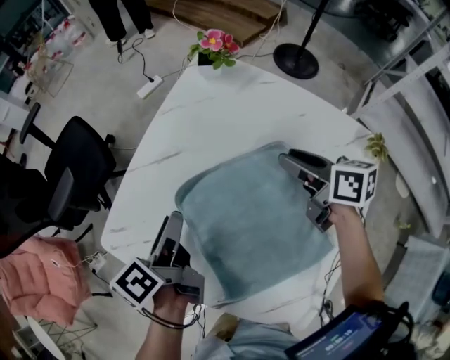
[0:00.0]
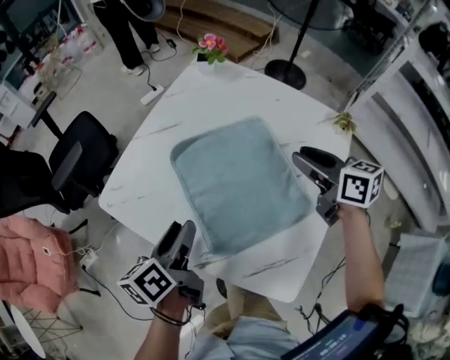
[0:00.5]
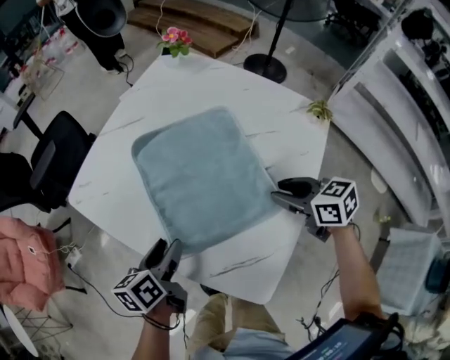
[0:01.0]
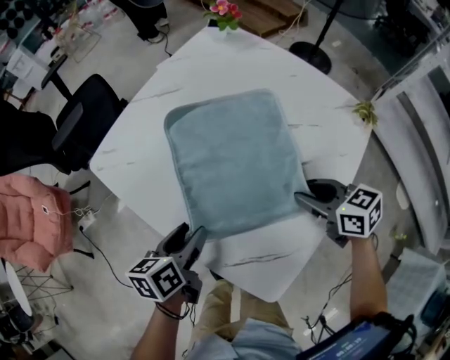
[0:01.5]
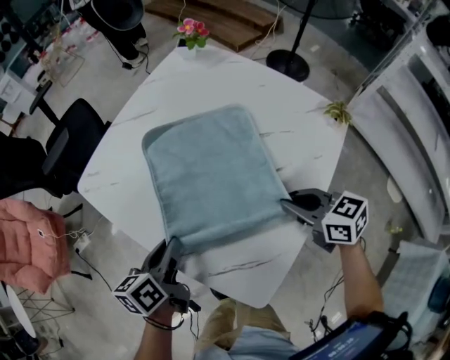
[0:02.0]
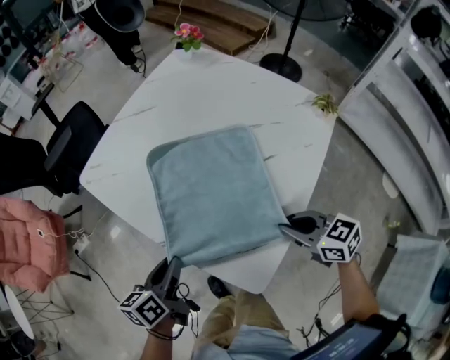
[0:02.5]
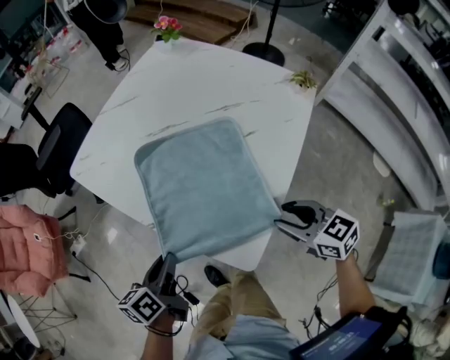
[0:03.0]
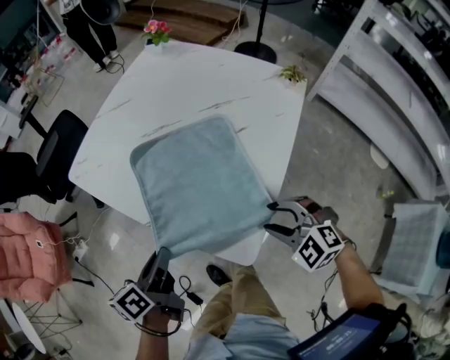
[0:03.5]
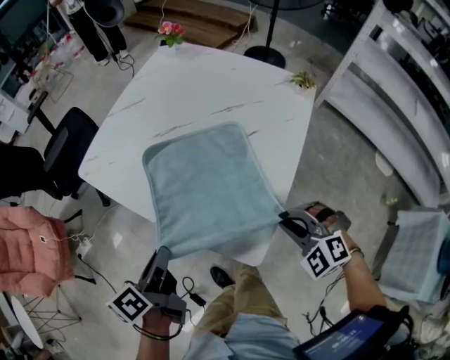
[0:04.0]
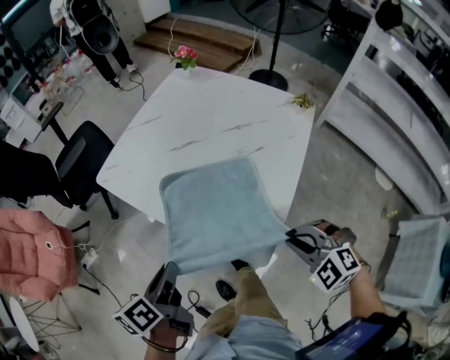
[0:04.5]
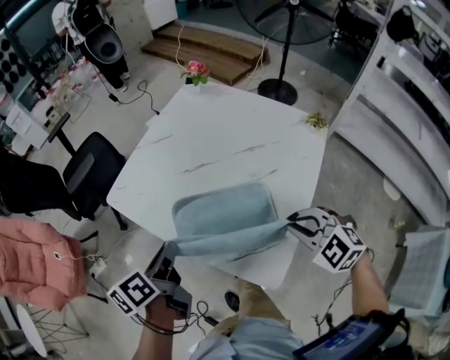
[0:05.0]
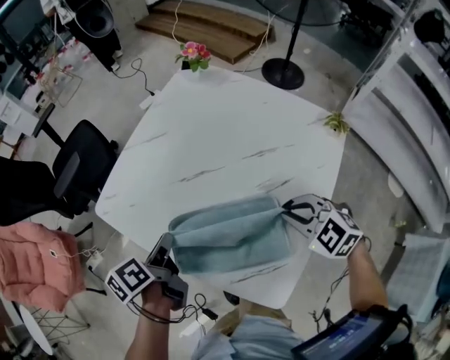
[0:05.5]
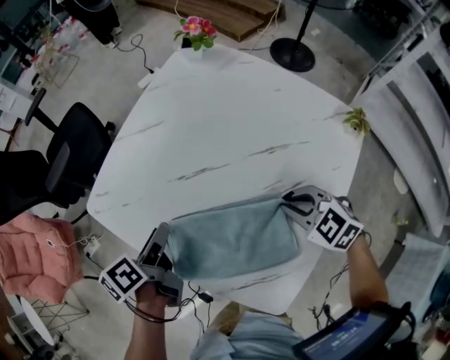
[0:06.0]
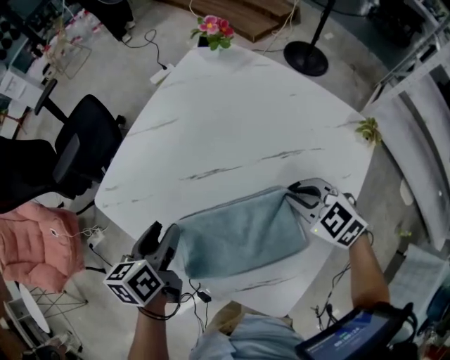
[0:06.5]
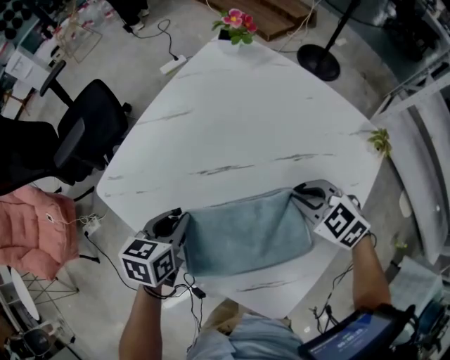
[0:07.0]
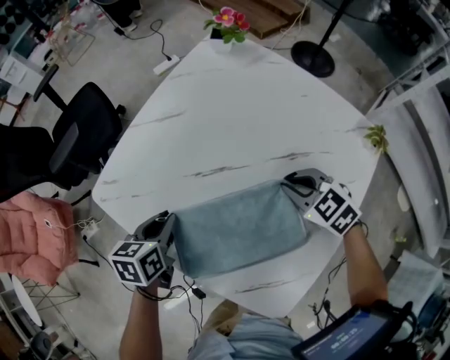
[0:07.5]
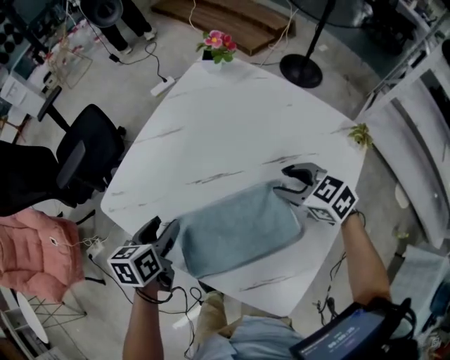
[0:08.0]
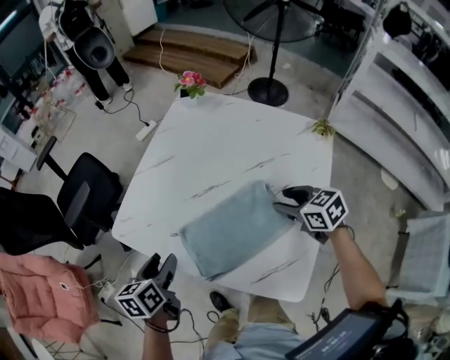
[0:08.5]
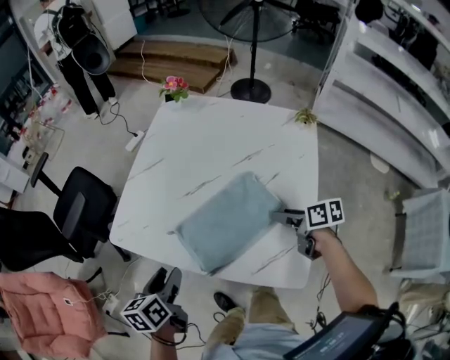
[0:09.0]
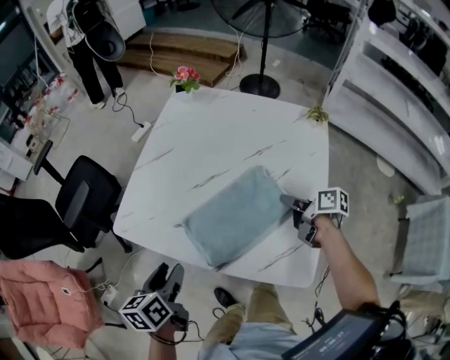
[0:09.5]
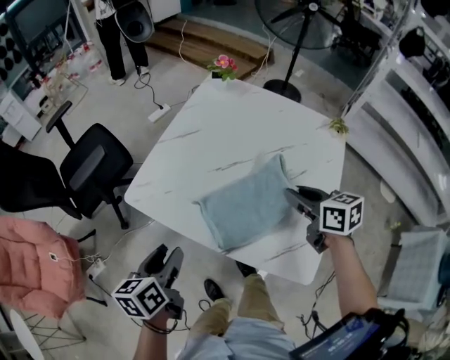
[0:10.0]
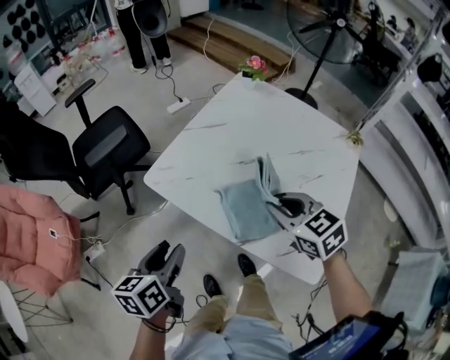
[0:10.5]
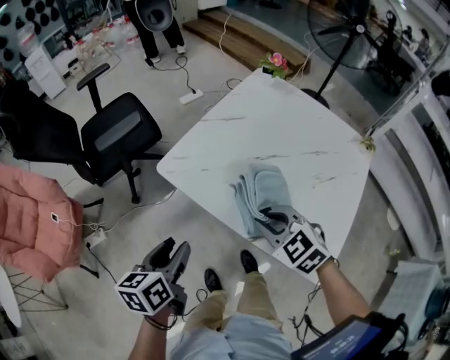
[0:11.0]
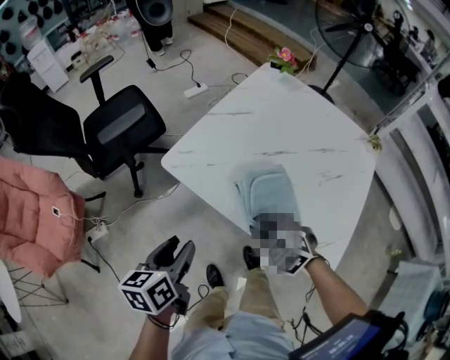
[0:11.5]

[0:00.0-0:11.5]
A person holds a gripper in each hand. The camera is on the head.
0:00.0 to 0:02.0: The two grippers go some 25 cm backward. The right gripper turns by some 30 degrees, and closes its fingers. Meanwhile the left gripper rotates some 20 degrees, and closes its fingers.
0:02.0 to 0:04.0: Both grippers move backward, about 15 cm. The right gripper twists some 60 degrees counterclockwise, seen from behind, and opens and closes again.
0:04.0 to 0:06.0: The two grippers go some 25 cm forward. The right gripper rotates some 30 degrees. The left gripper opens.
0:06.0 to 0:07.5: The left gripper swivels about 40 degrees, and closes. Meanwhile the right gripper heads forward, covering roughly 10 cm.
0:07.5 to 0:09.5: The right gripper is displaced backward by some 15 cm, rolls clockwise, seen from behind, by about 90 degrees, and opens, then closes again. The left gripper is displaced backward, upward and to the left by some 15 cm, and opens its fingers.
0:09.5 to 0:11.5: The right gripper shifts approximately 35 cm to the left, and twists some 100 degrees counterclockwise, seen from behind. Meanwhile the left gripper heads to the left and backward, covering about 10 cm.

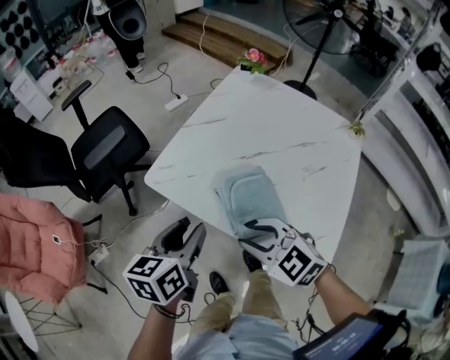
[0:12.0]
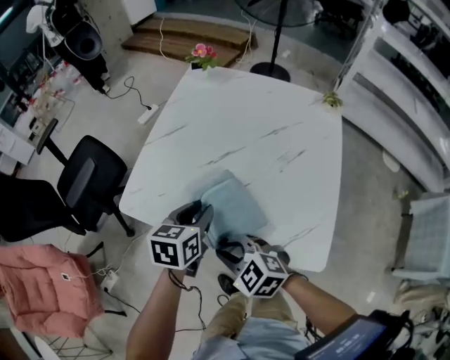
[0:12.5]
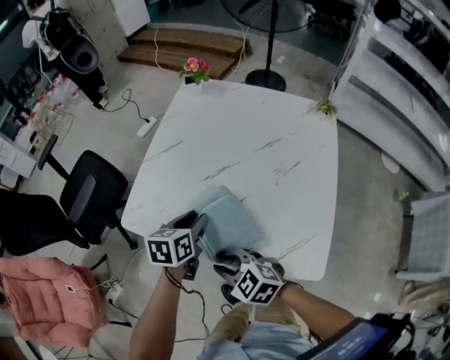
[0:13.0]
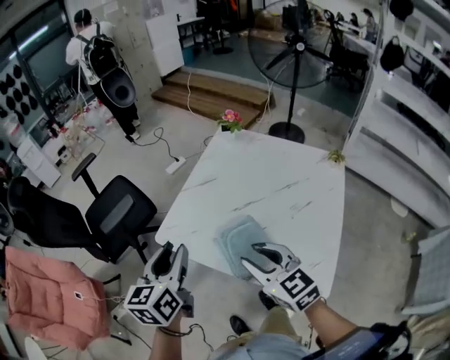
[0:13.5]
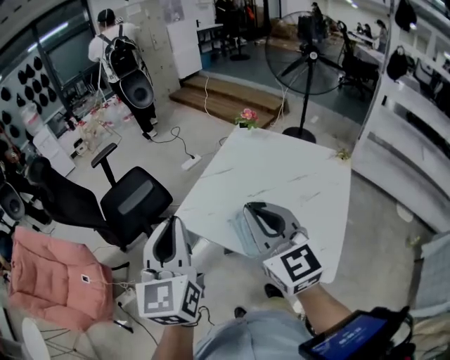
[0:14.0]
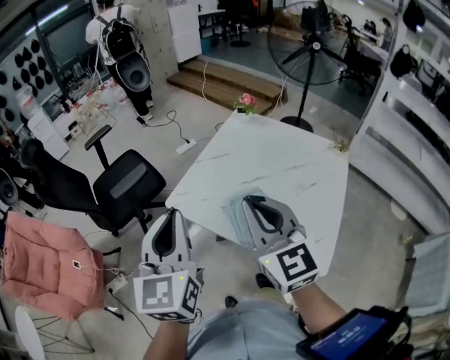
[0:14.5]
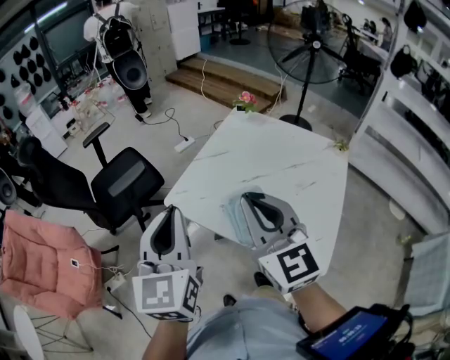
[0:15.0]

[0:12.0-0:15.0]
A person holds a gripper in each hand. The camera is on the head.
0:12.0 to 0:13.5: The grippers both shift upward by about 10 cm. The right gripper rotates some 30 degrees.
0:13.5 to 0:15.0: The right gripper goes about 15 cm upward, changes its angle by approximately 30 degrees, and closes its fingers. The left gripper goes approximately 15 cm upward and backward, swivels roughly 30 degrees, and closes its fingers.

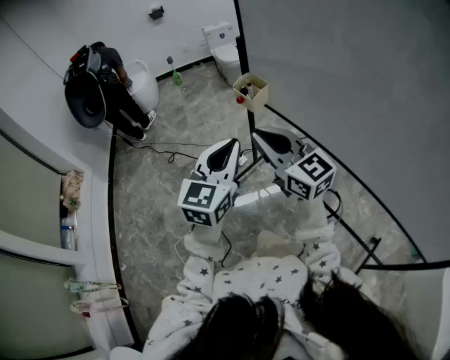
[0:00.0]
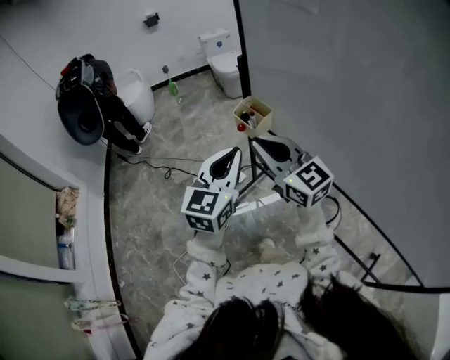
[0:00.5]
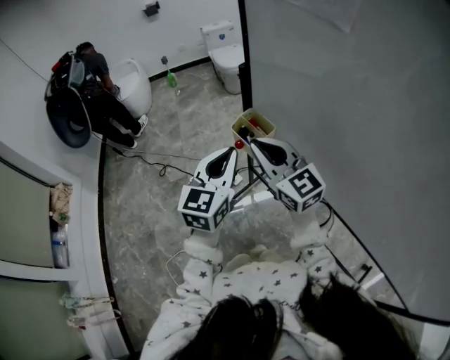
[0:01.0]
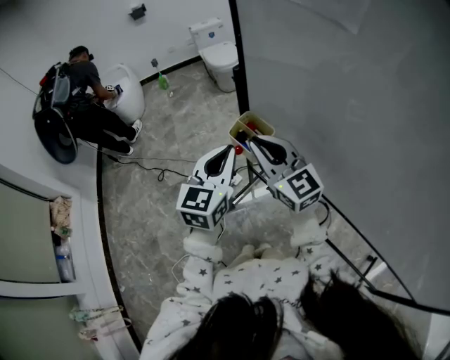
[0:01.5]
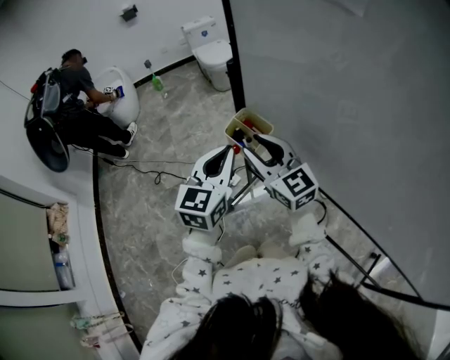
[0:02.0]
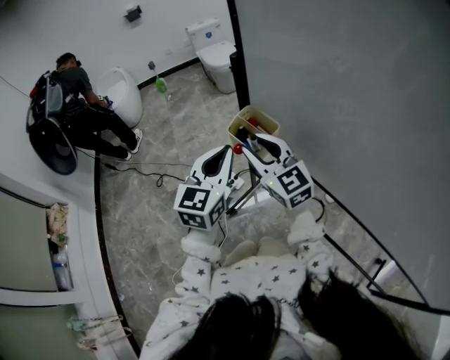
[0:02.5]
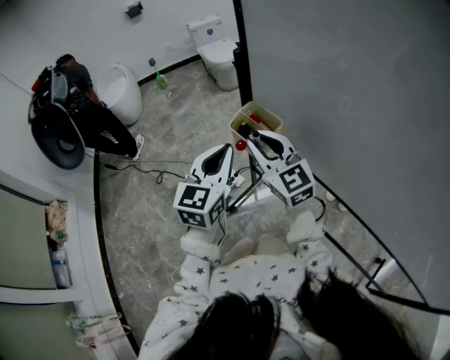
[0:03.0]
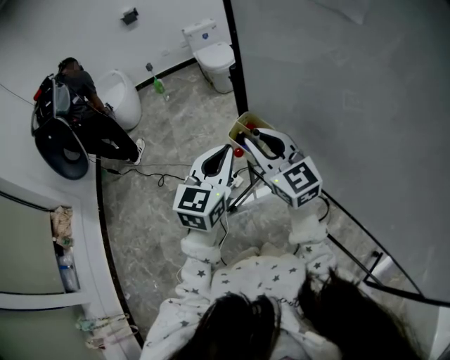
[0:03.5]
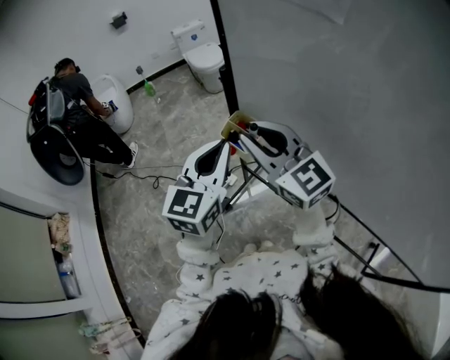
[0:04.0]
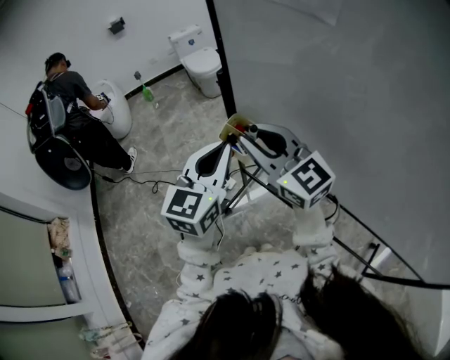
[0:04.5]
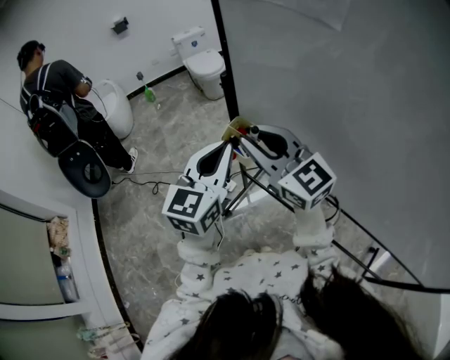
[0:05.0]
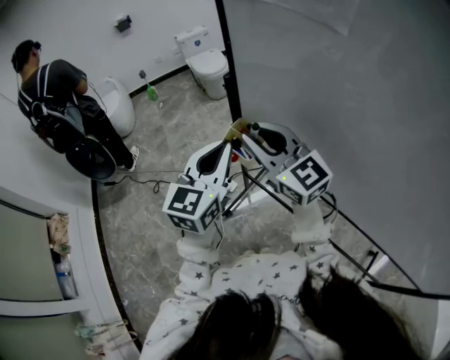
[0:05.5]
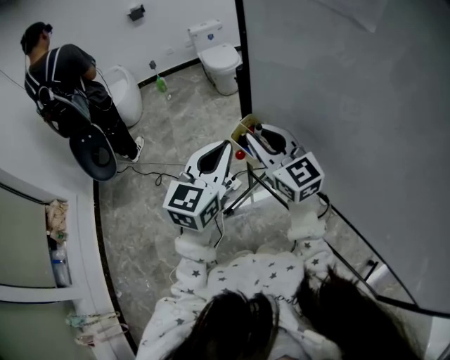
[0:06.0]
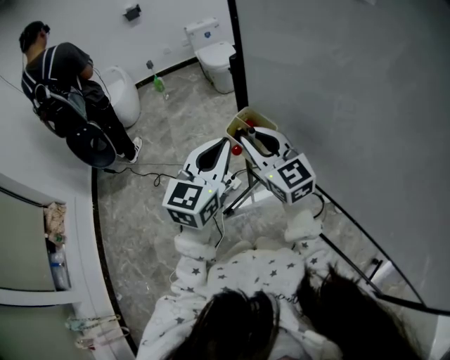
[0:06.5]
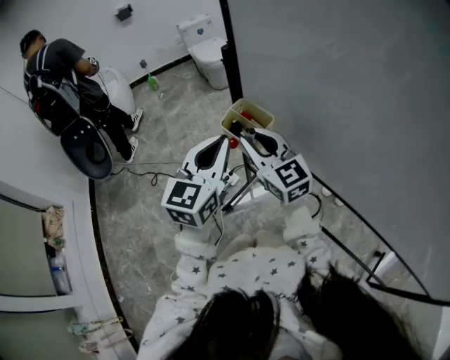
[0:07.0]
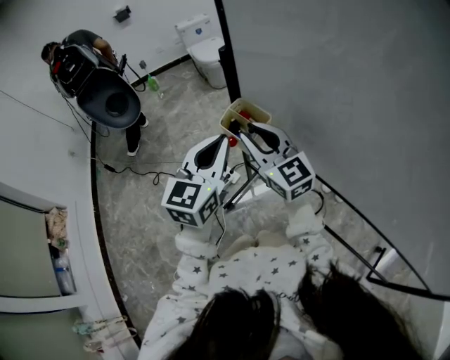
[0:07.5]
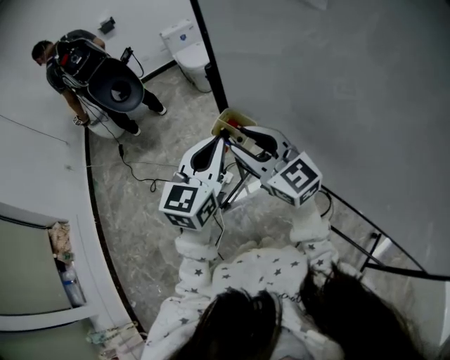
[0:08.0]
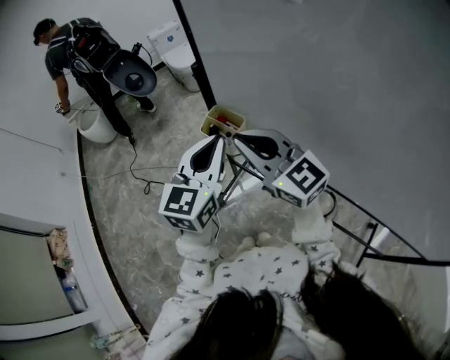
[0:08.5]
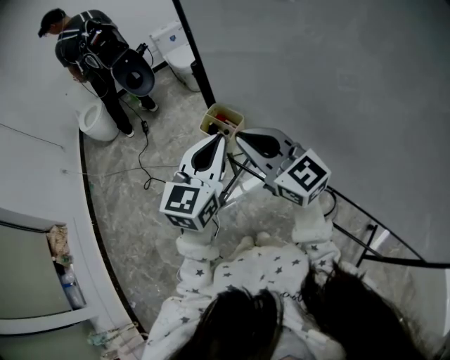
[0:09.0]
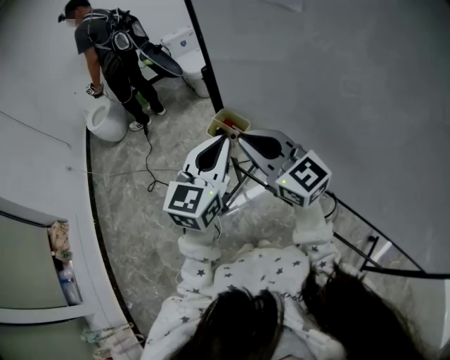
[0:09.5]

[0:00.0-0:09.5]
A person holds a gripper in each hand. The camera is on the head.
0:00.0 to 0:02.0: The grippers both shift forward by about 25 cm. The right gripper opens up.
0:02.0 to 0:04.0: The grippers both shift upward by approximately 10 cm.
0:04.0 to 0:05.5: There are only small adjustments of the grippers.
0:05.5 to 0:07.5: The left gripper moves downward, approximately 10 cm. Meanwhile the right gripper moves downward, about 10 cm.
0:07.5 to 0:09.5: The right gripper moves upward and backward, roughly 15 cm; the left gripper goes approximately 10 cm upward.

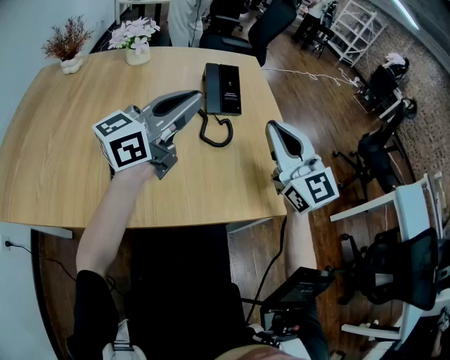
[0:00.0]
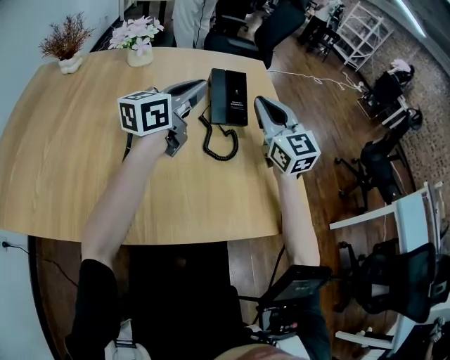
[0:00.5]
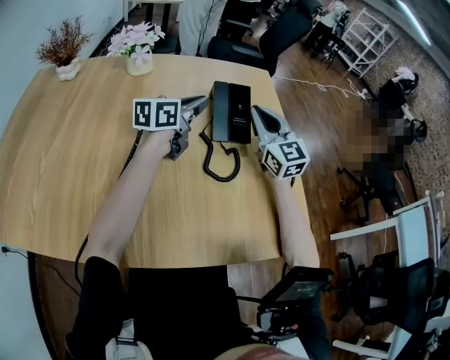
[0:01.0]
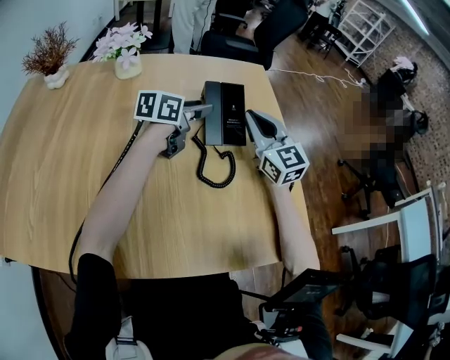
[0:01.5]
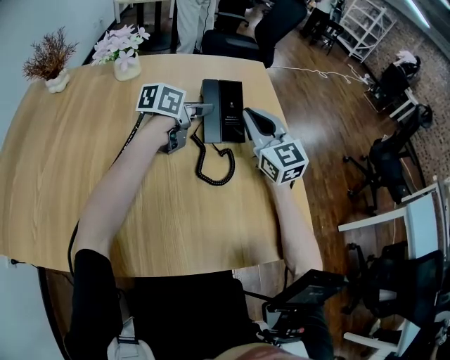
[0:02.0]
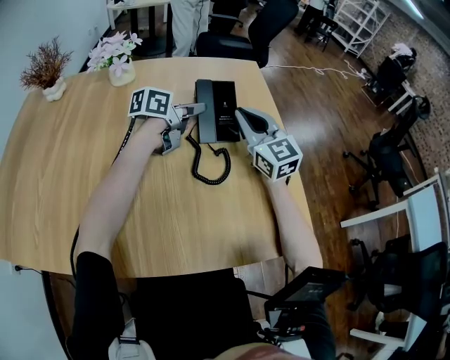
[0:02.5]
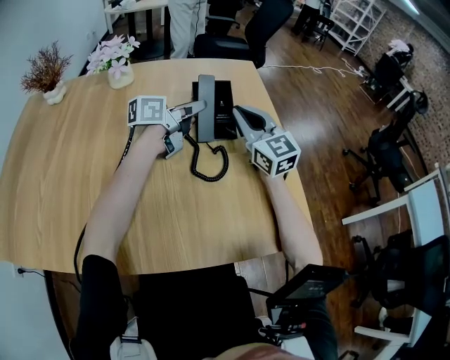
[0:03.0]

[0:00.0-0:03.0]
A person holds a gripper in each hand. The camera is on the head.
0:00.0 to 0:01.5: The left gripper shifts approximately 30 cm forward and downward, tips its fingers downward by about 30 degrees, and opens, while the right gripper shifts some 20 cm forward.
0:01.5 to 0:03.0: The left gripper closes its fingers.
